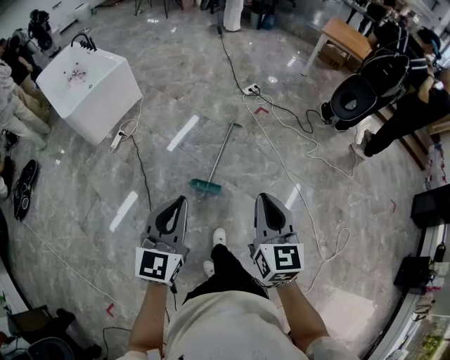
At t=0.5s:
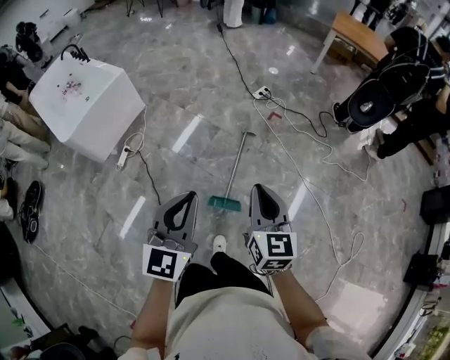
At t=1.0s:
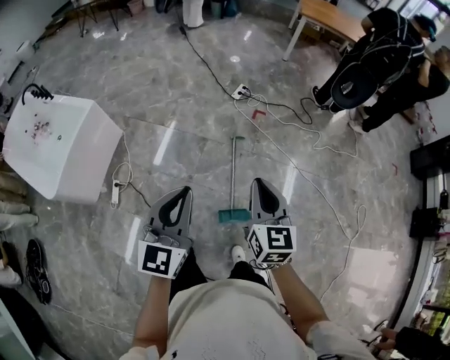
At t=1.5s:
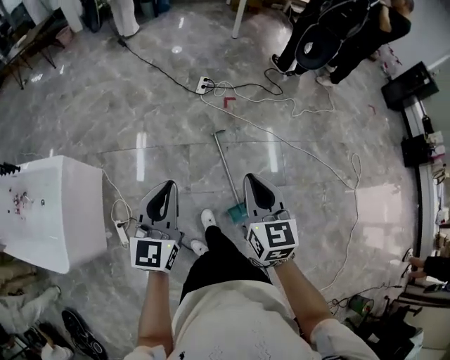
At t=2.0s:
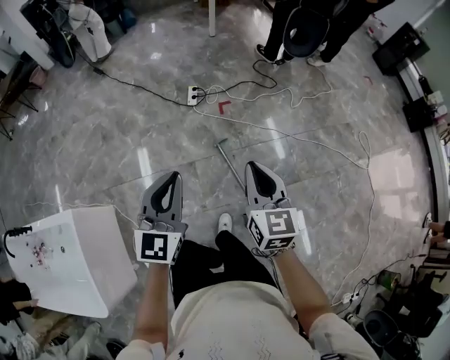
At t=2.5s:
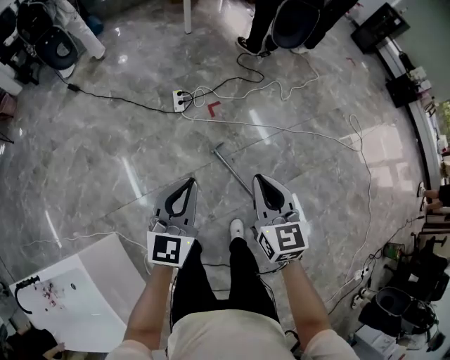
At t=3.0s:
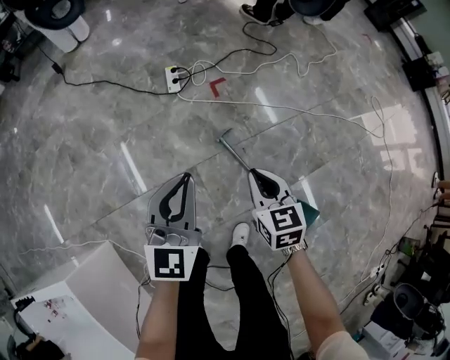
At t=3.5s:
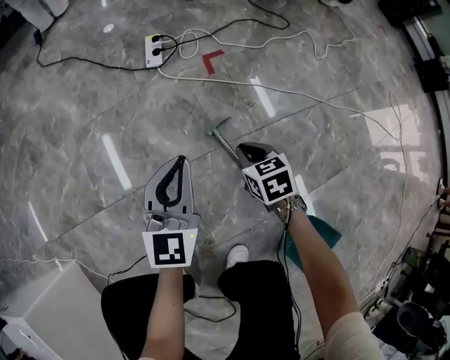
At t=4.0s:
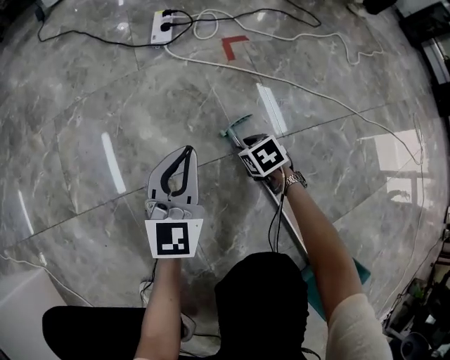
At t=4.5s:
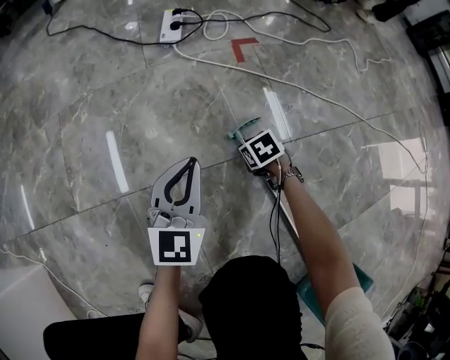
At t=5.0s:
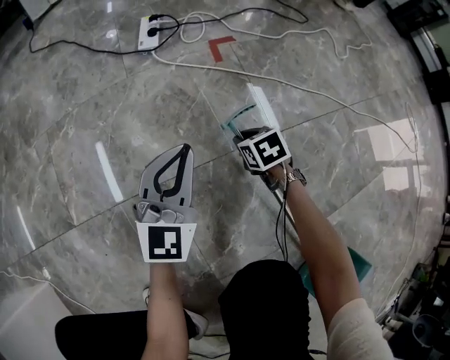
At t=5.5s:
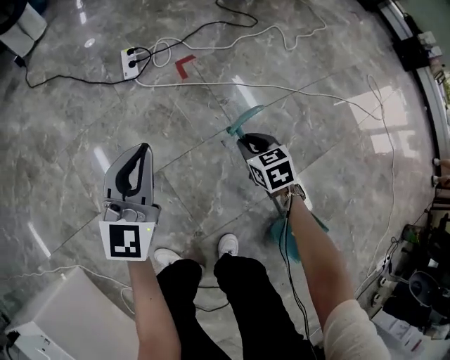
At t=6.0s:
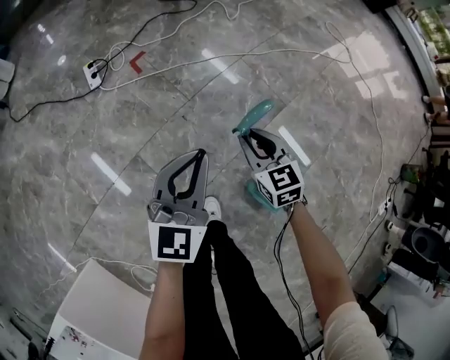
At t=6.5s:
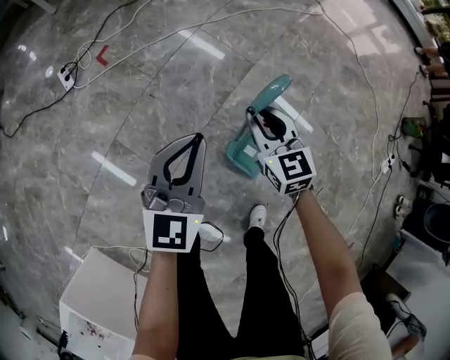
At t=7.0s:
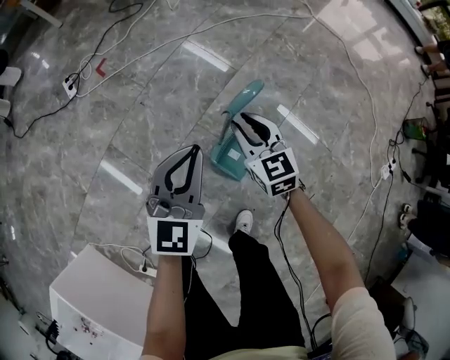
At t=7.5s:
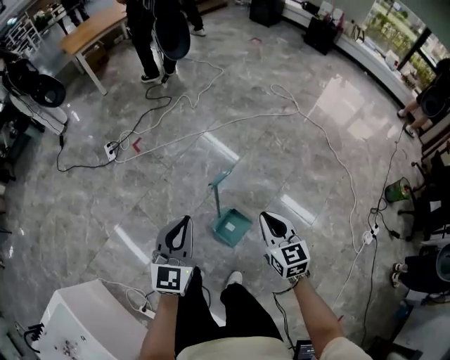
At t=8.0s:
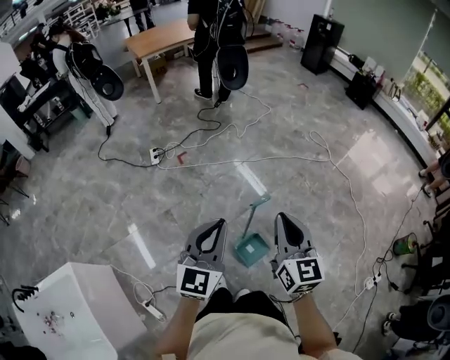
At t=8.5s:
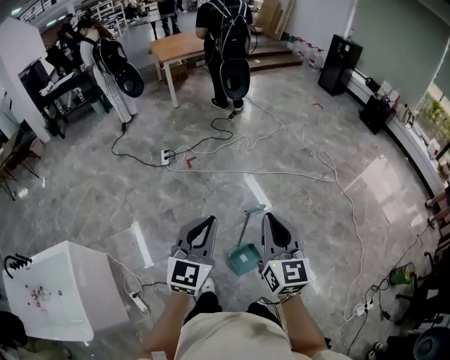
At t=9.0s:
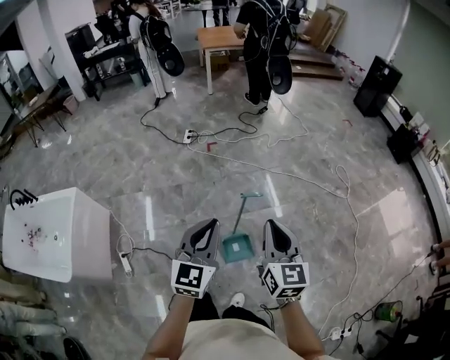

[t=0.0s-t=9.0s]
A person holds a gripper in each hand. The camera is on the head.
t=0.0s to t=2.0s: The pair of grippers is taken some 70 cm. The left gripper turns by approximately 50 degrees. The right gripper changes its angle by approximately 40 degrees.
t=2.0s to t=4.5s: The grippers both shift downward by approximately 1 m. The right gripper angles its fingers downward, by approximately 50 degrees, and opens up.
t=4.5s to t=7.0s: The pair of grippers is taken some 60 cm. The right gripper heads upward, covering roughly 70 cm, and tips its fingers upward by some 40 degrees; the left gripper swivels about 40 degrees.
t=7.0s to t=9.0s: The grippers both shift upward by roughly 50 cm. The left gripper changes its angle by some 40 degrees. Meanwhile the right gripper changes its angle by about 20 degrees.

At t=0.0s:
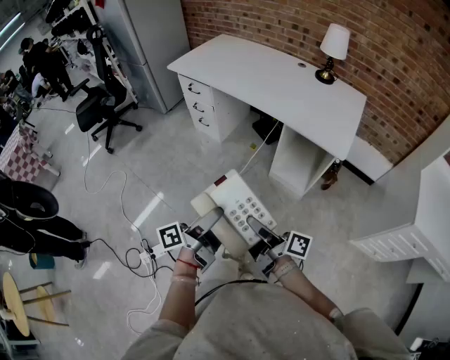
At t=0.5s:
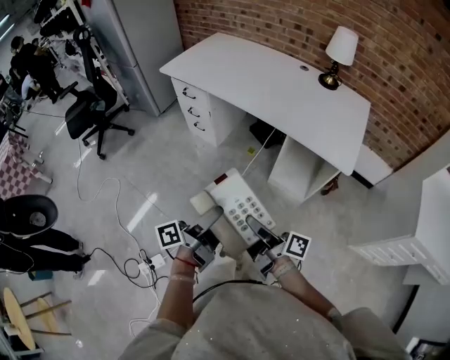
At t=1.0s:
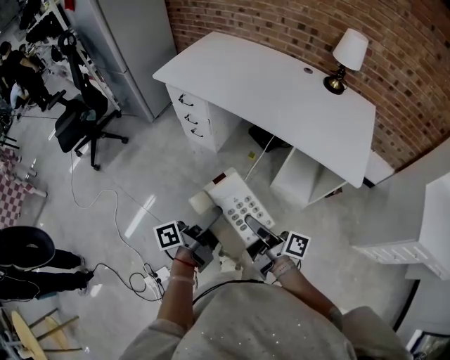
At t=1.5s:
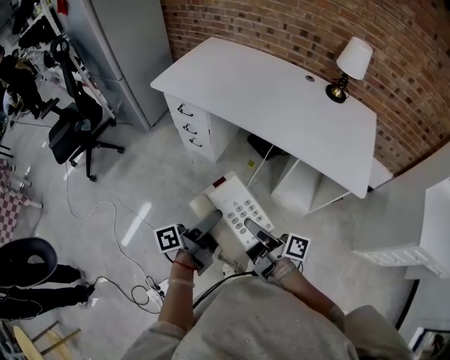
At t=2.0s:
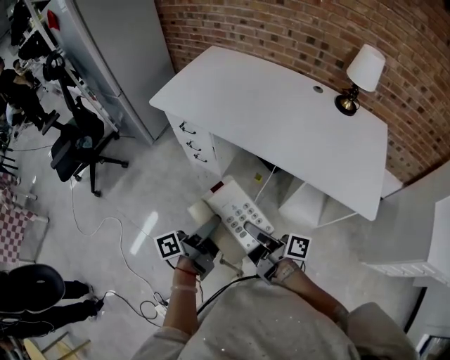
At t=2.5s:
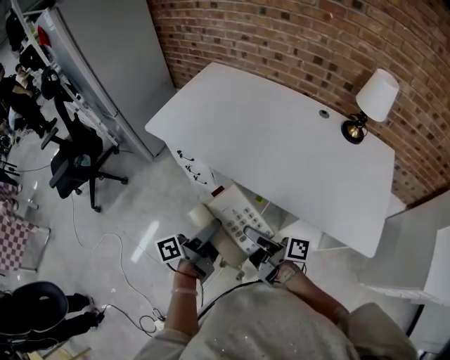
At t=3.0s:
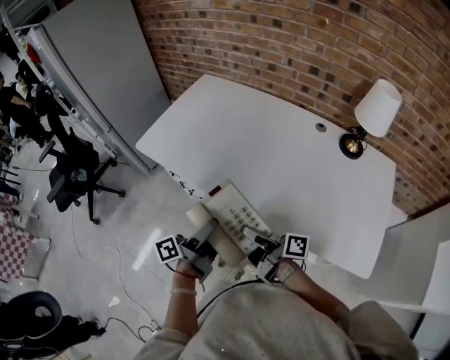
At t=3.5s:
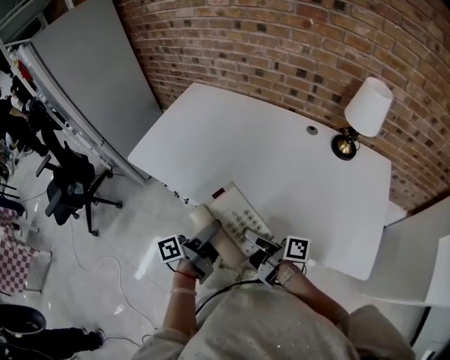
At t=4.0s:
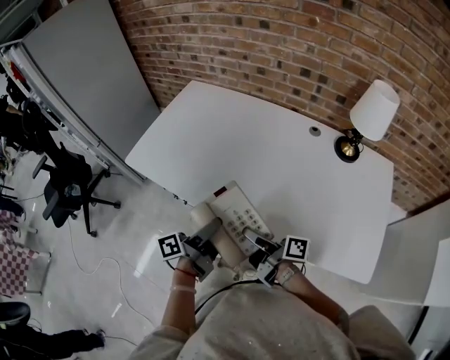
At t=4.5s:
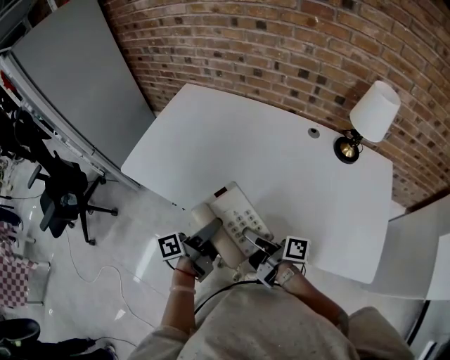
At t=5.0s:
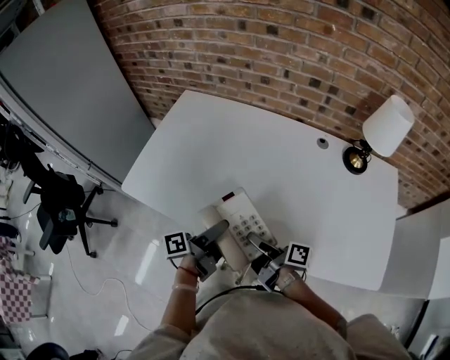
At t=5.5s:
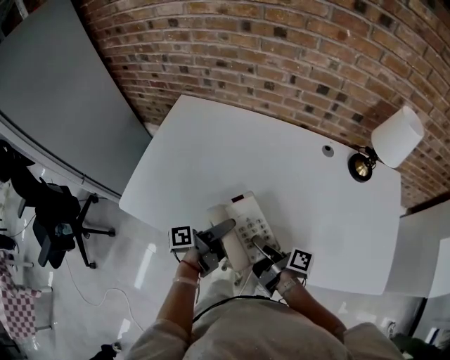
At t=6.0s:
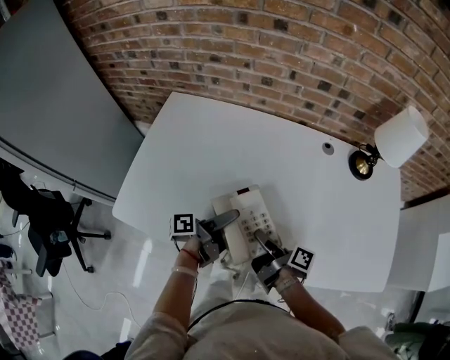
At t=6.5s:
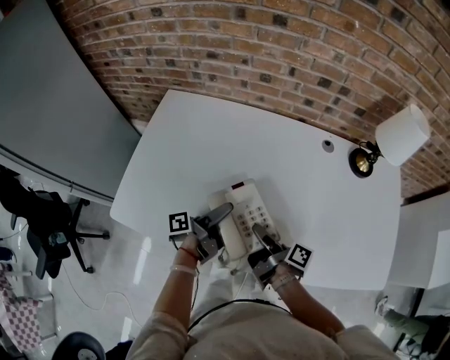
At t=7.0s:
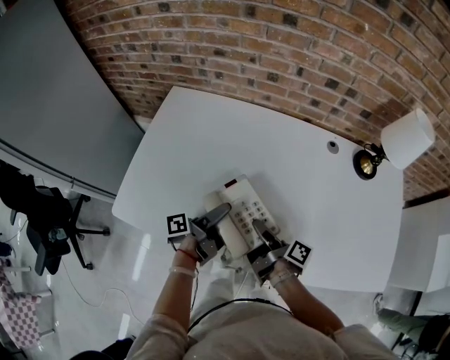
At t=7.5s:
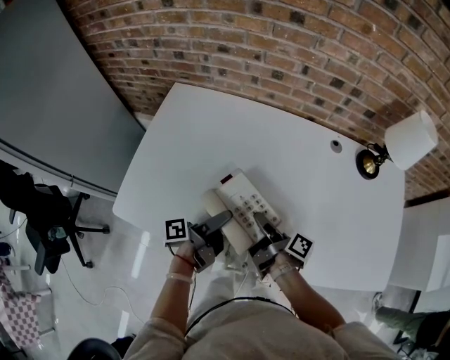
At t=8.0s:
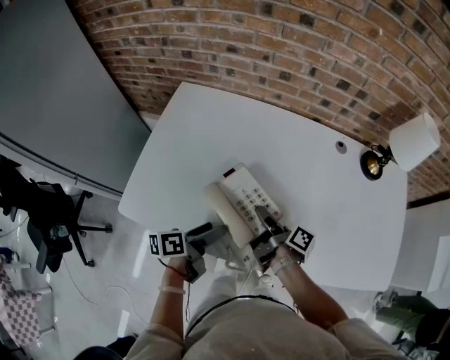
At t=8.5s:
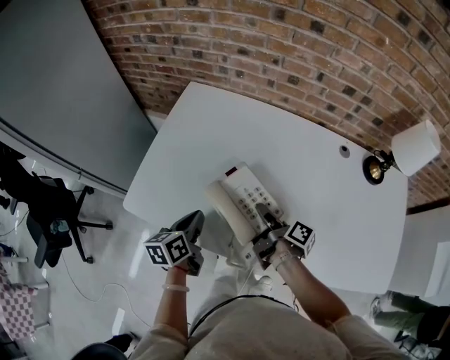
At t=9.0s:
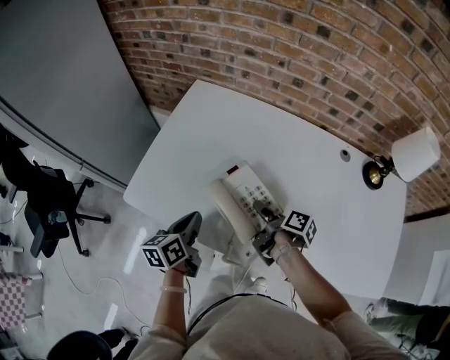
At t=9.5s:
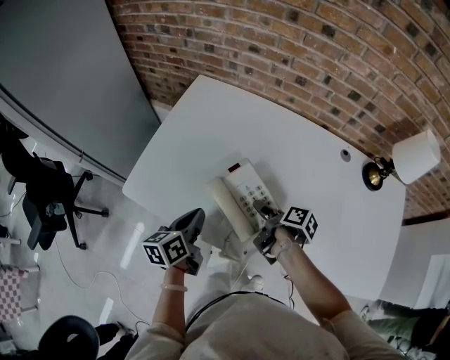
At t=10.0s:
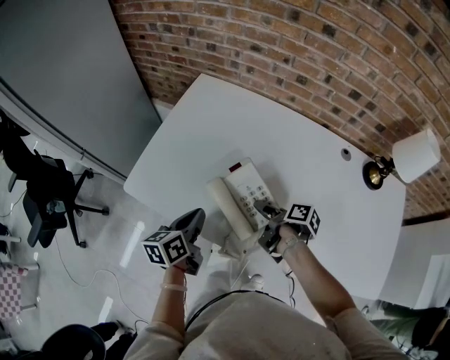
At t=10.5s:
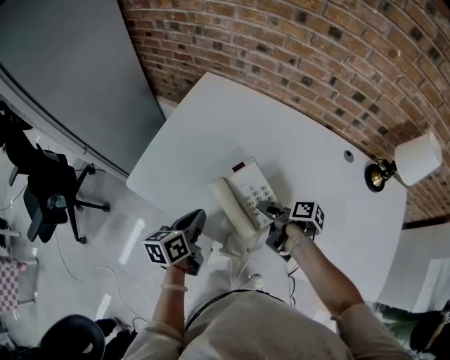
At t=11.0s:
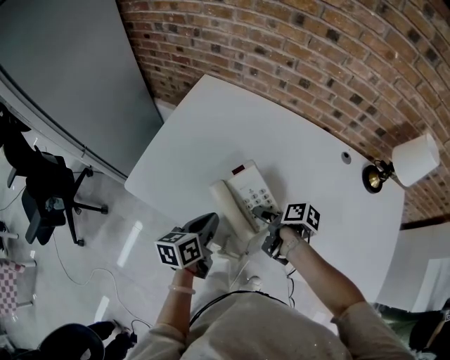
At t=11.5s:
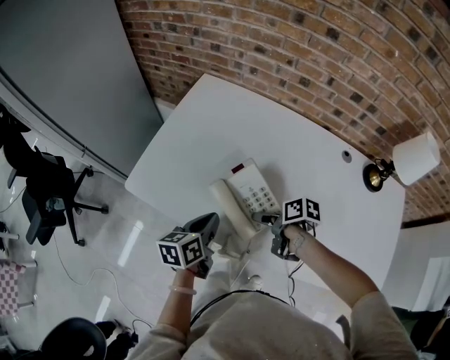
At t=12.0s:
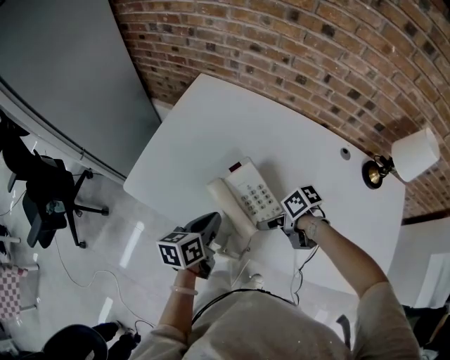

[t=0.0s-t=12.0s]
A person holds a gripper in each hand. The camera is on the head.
t=0.0s to t=2.0s: The left gripper shifts by roughly 35 cm.
t=2.0s to t=4.0s: The left gripper moves roughly 30 cm.
t=4.0s to t=6.0s: The left gripper changes place by roughly 20 cm, and changes its angle by some 30 degrees.
t=6.0s to t=8.0s: The left gripper changes place by some 10 cm, and swivels approximately 30 degrees.
t=8.0s to t=10.0s: The left gripper changes place by roughly 5 cm, turns by some 30 degrees, and closes its fingers.

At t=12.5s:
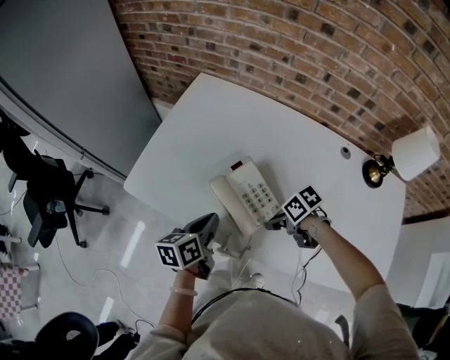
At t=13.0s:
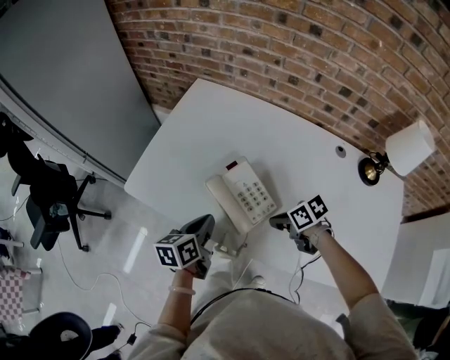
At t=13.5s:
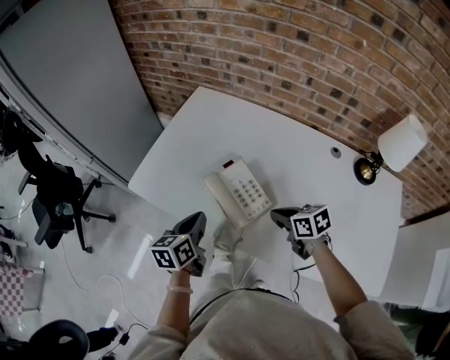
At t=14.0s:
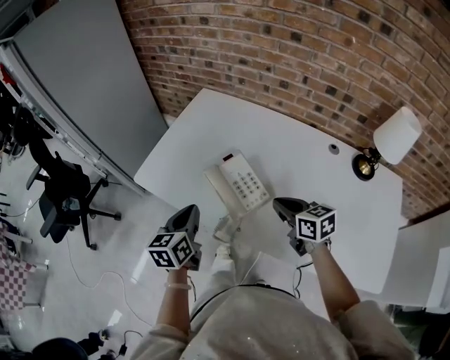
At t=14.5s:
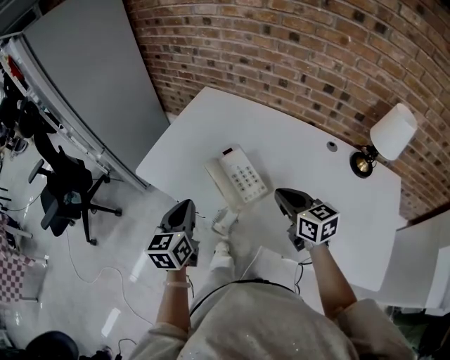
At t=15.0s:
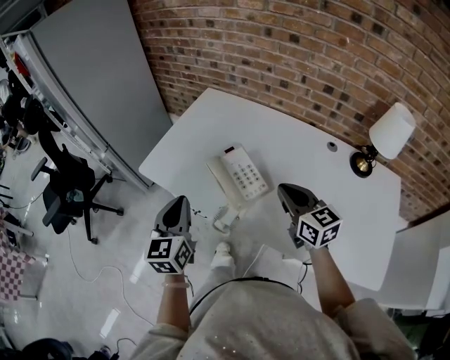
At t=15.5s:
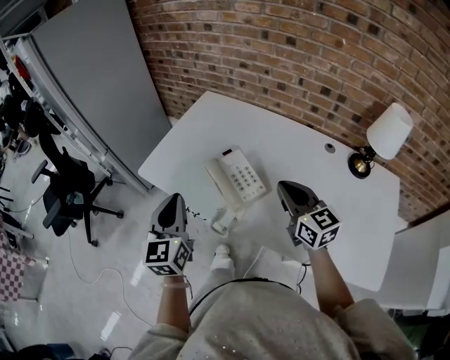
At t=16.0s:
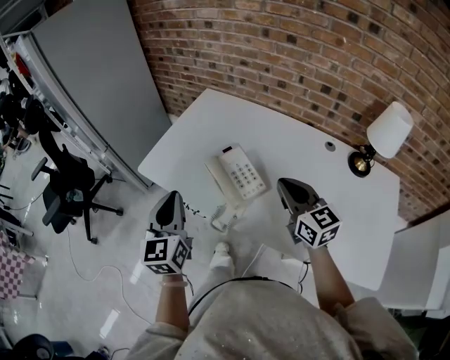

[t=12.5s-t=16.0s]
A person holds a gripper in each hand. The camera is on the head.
t=12.5s to t=14.5s: The left gripper travels upward by approximately 10 cm, and turns by some 40 degrees.
t=14.5s to t=16.0s: The left gripper is displaced upward by about 5 cm.

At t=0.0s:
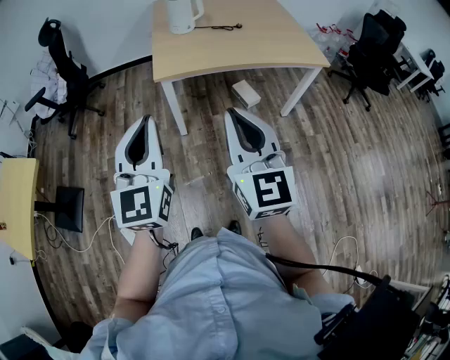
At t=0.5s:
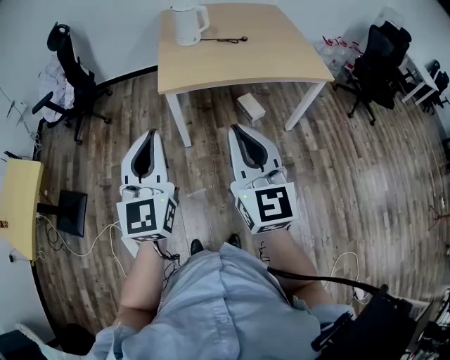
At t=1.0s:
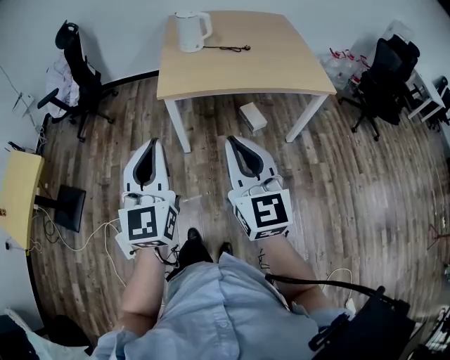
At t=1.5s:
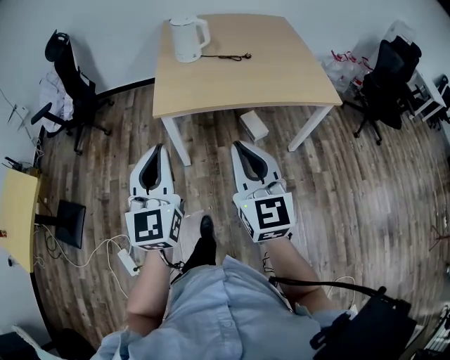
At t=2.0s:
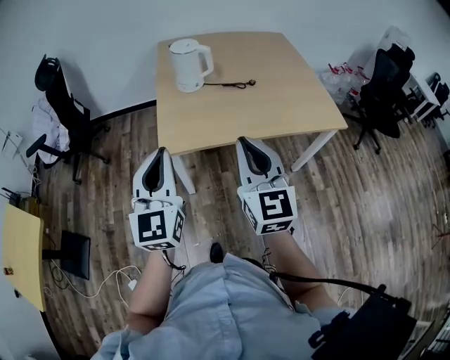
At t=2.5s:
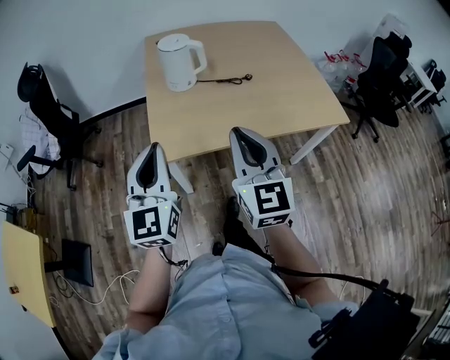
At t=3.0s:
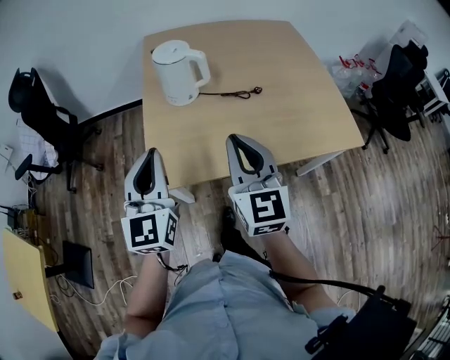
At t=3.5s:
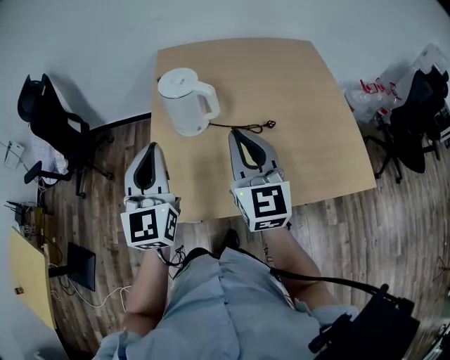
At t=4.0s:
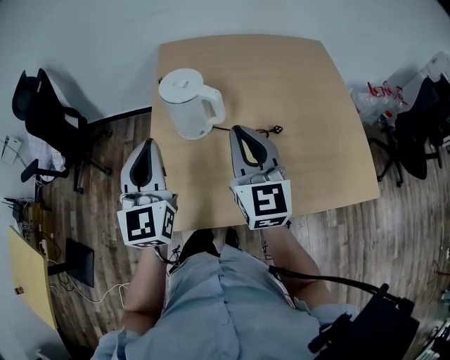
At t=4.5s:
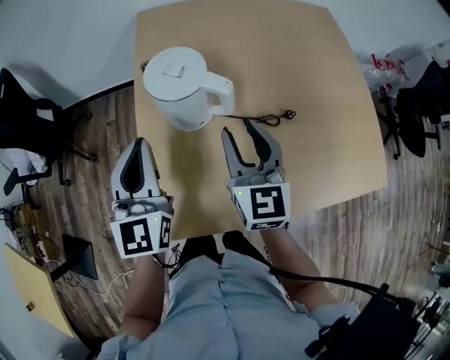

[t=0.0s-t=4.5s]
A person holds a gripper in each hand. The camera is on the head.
t=0.0s to t=2.0s: Both grippers travel together forward, some 25 cm.
t=2.0s to t=4.5s: The grippers both shift forward by roughly 40 cm. The right gripper opens its fingers.
